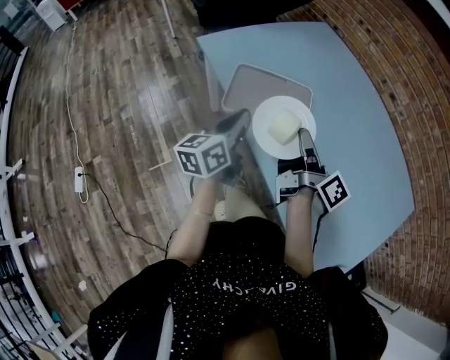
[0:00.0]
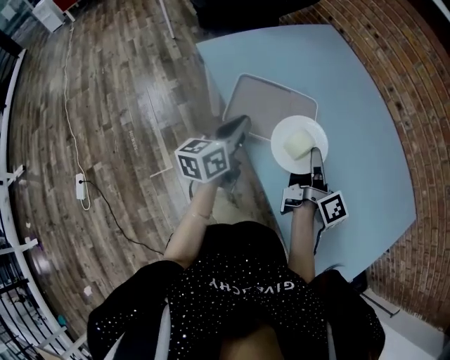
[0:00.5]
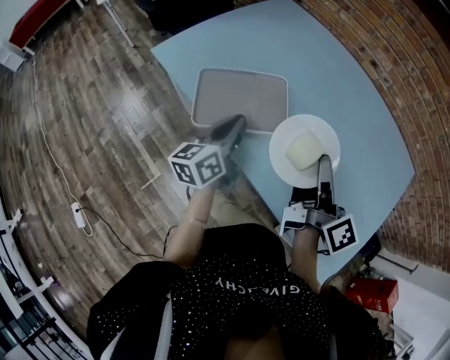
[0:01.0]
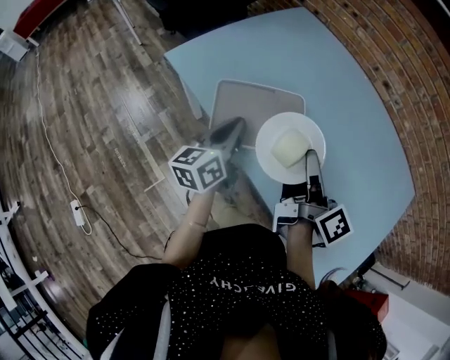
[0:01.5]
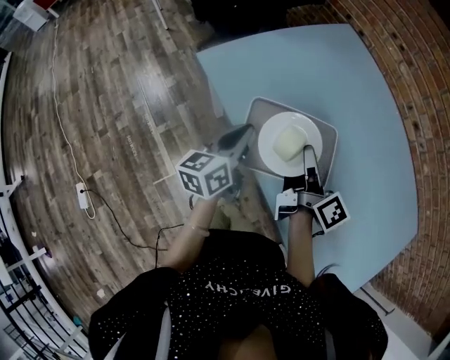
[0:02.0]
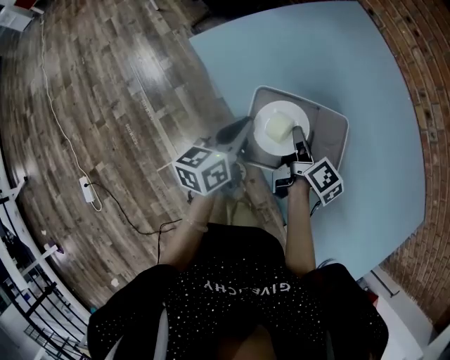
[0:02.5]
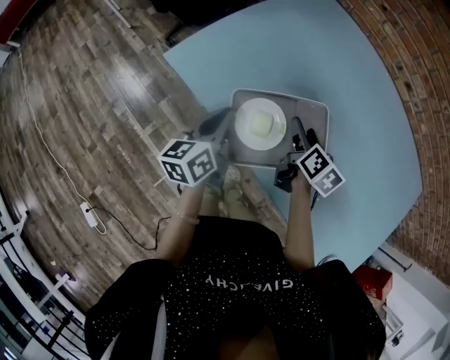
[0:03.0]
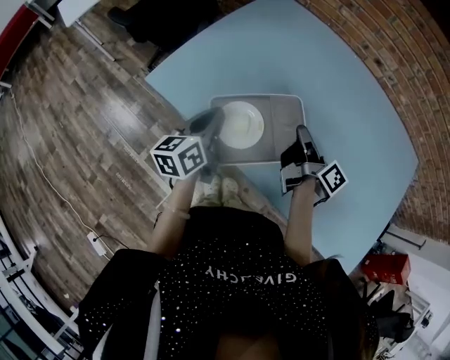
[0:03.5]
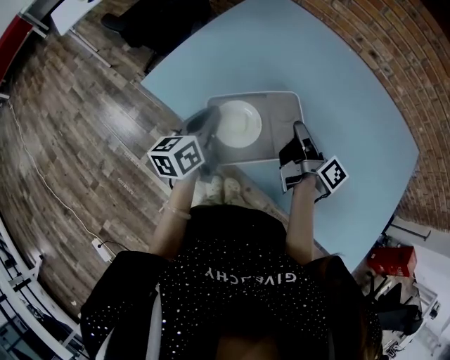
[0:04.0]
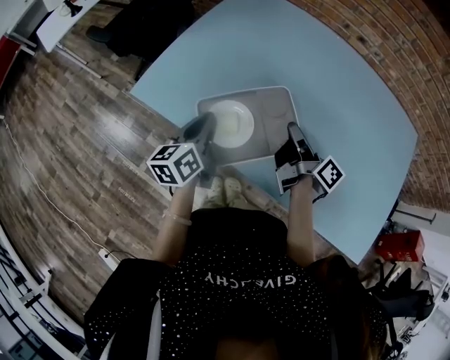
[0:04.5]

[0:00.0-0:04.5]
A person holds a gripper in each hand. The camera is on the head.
0:00.0 to 0:02.0: The left gripper moves approximately 20 cm.
0:02.0 to 0:04.5: The left gripper shifts by some 5 cm.

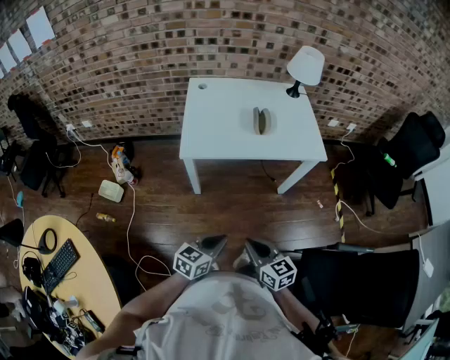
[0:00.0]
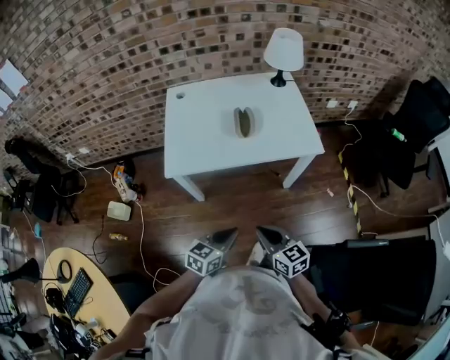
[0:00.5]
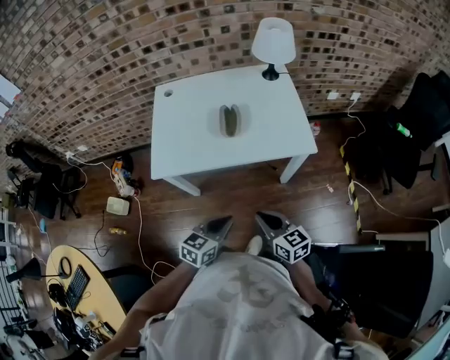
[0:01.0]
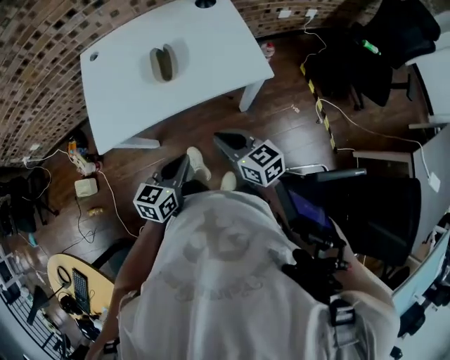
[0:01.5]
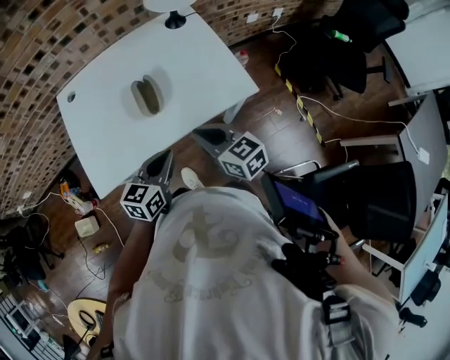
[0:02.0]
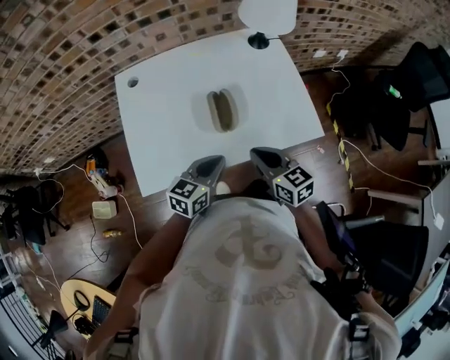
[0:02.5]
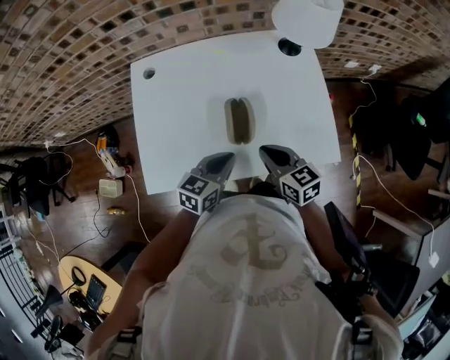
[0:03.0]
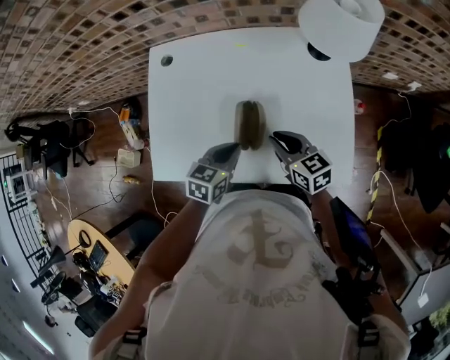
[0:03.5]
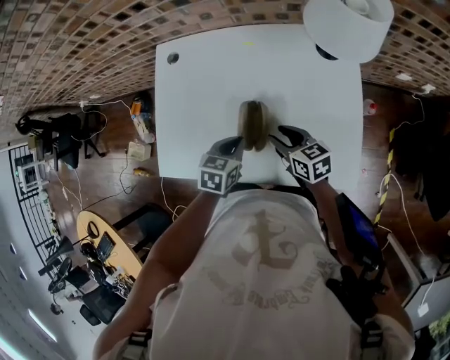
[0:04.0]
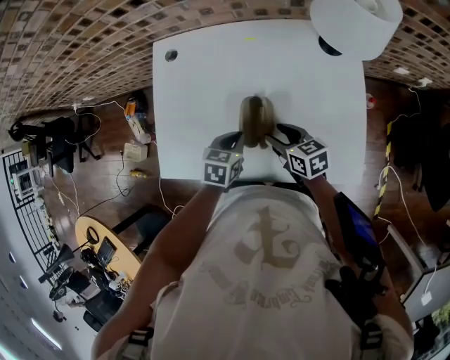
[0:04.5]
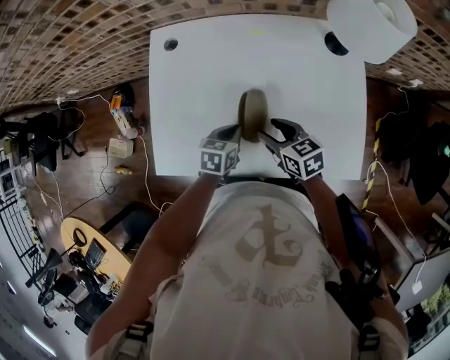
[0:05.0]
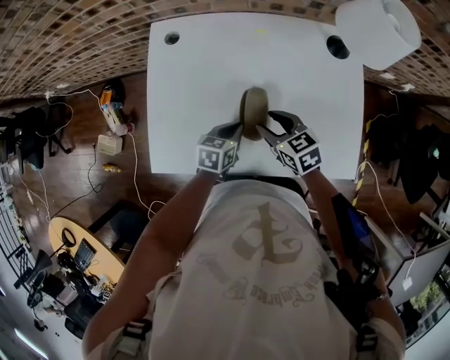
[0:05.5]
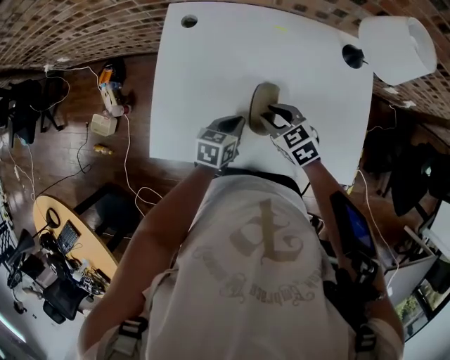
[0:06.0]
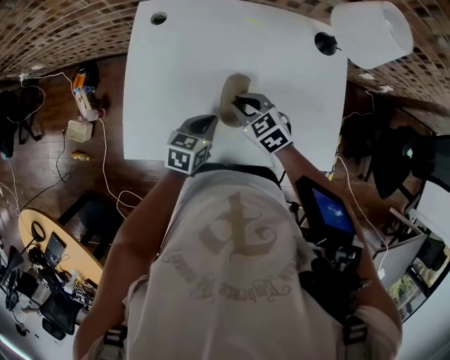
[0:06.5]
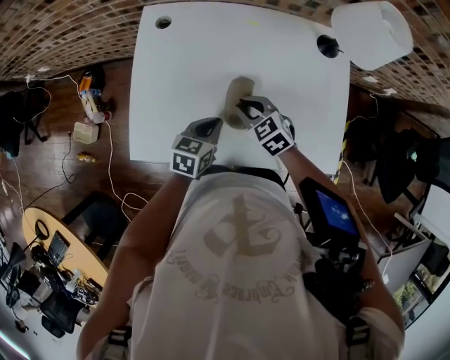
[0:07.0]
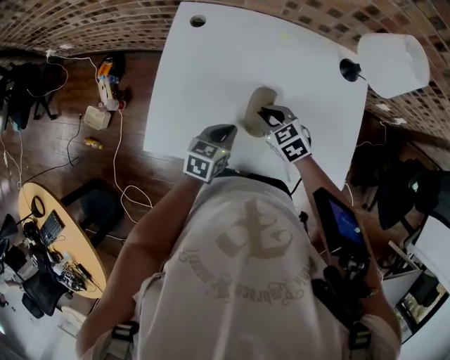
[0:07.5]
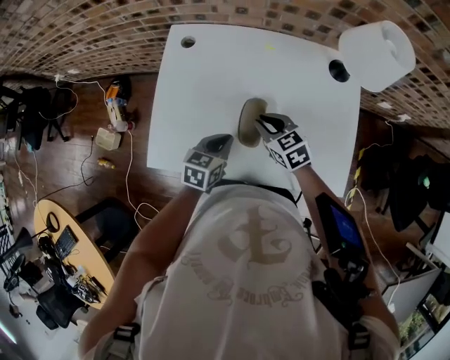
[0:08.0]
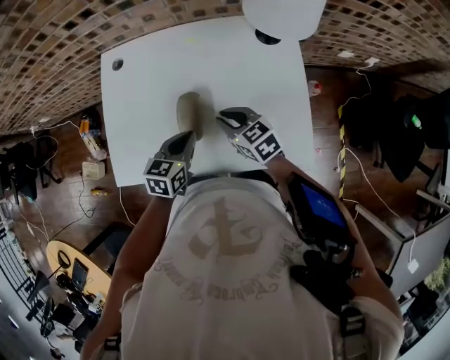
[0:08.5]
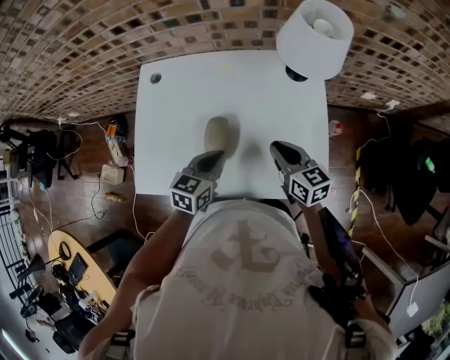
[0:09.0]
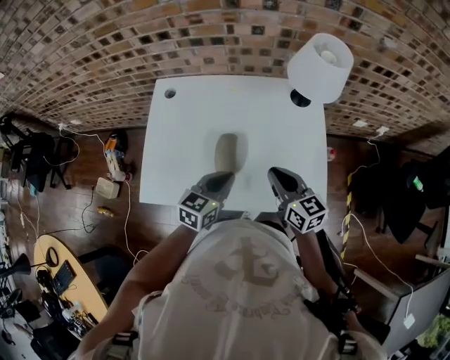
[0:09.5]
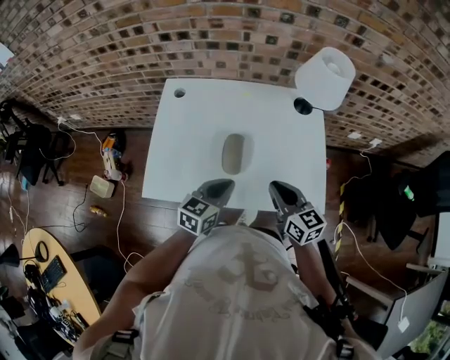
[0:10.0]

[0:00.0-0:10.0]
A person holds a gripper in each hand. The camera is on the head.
0:00.0 to 0:02.0: Both grippers move forward, approximately 40 cm.
0:02.0 to 0:04.0: The left gripper changes place by roughly 25 cm, and swivels roughly 40 degrees, while the right gripper shifts by roughly 25 cm, swivels approximately 30 degrees, and opens up.
0:04.0 to 0:06.0: The right gripper travels to the left by roughly 10 cm, and swivels approximately 30 degrees, while the left gripper shifts some 5 cm to the left.
0:06.0 to 0:08.0: The left gripper ends up roughly 5 cm from where it was.
0:08.0 to 0:10.0: The left gripper goes about 15 cm upward, backward and to the right. Meanwhile the right gripper heads backward, upward and to the right, covering about 20 cm, and changes its angle by approximately 30 degrees.

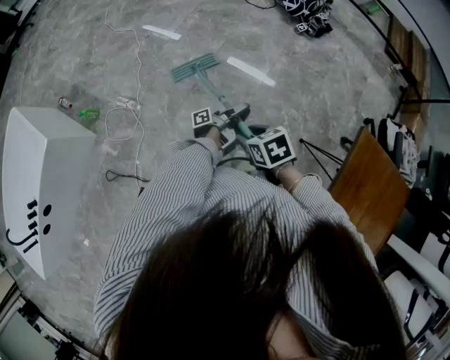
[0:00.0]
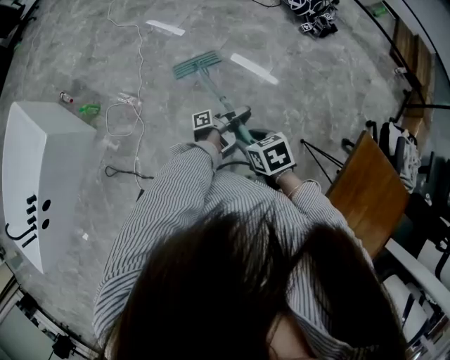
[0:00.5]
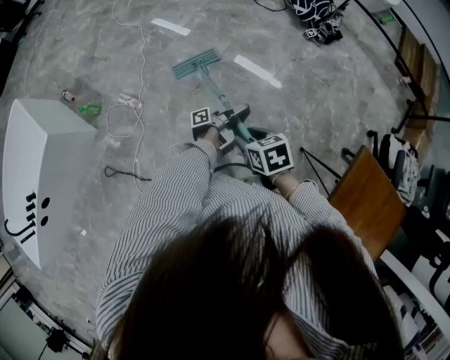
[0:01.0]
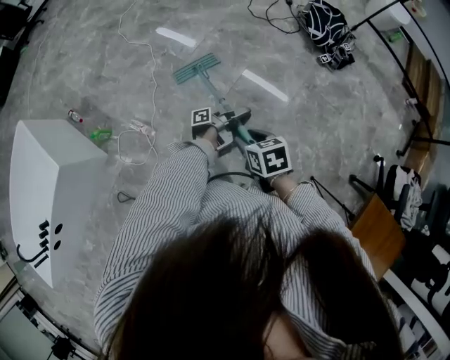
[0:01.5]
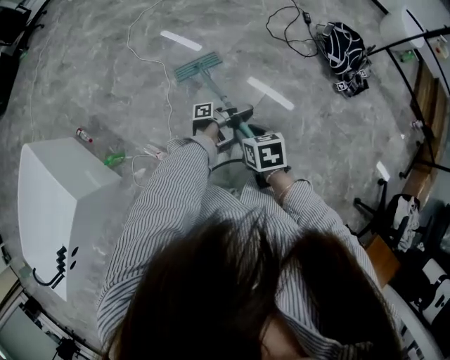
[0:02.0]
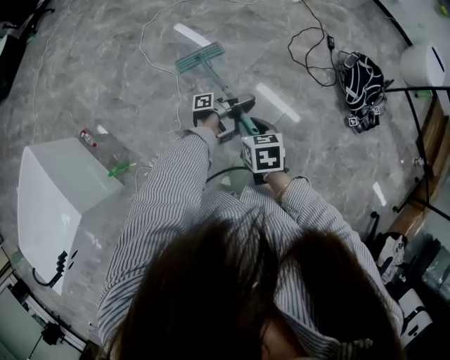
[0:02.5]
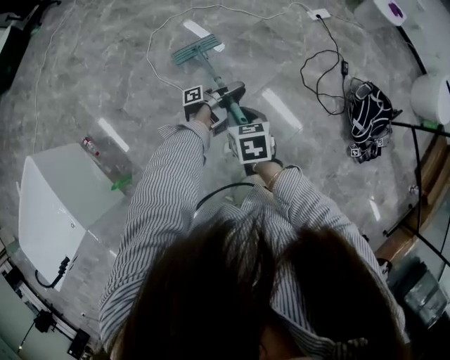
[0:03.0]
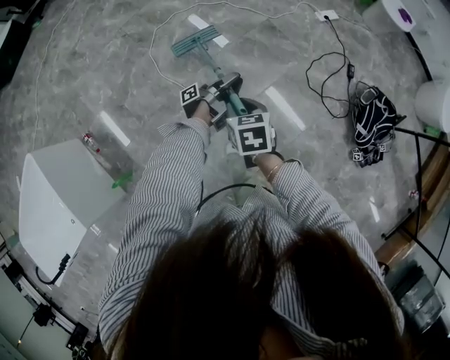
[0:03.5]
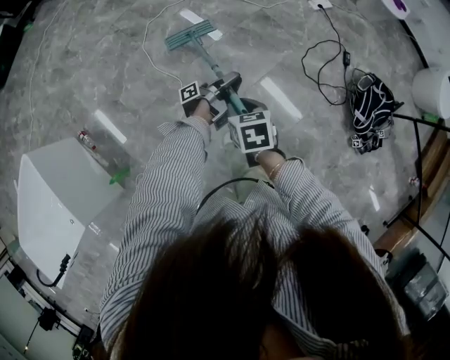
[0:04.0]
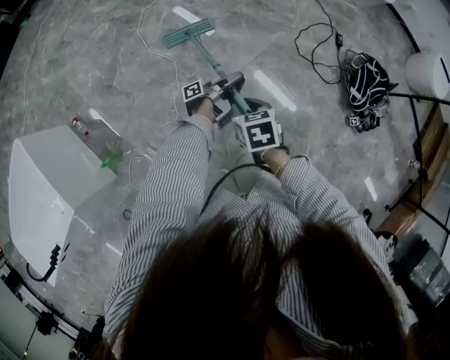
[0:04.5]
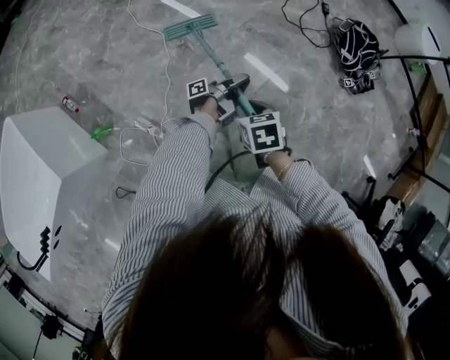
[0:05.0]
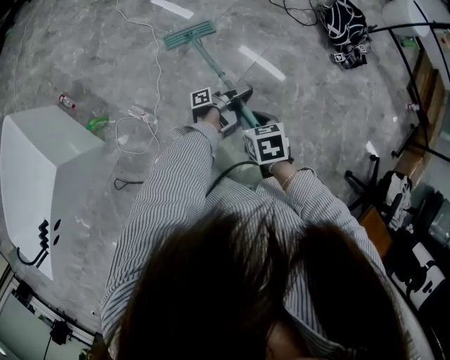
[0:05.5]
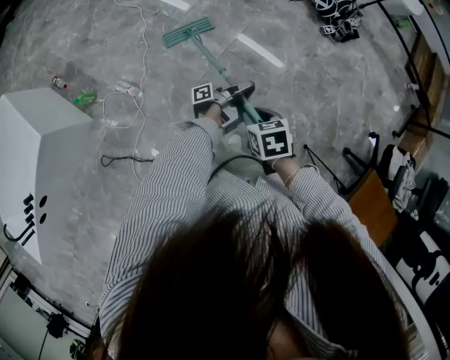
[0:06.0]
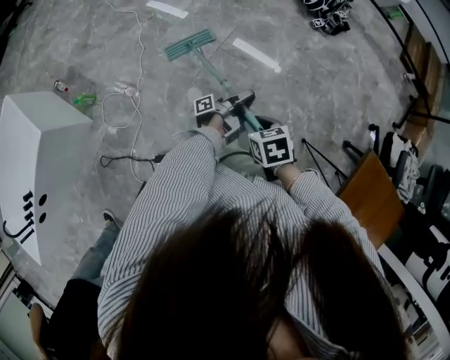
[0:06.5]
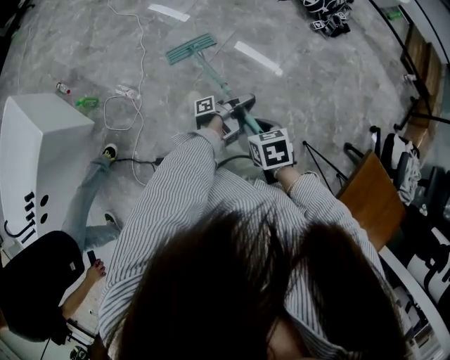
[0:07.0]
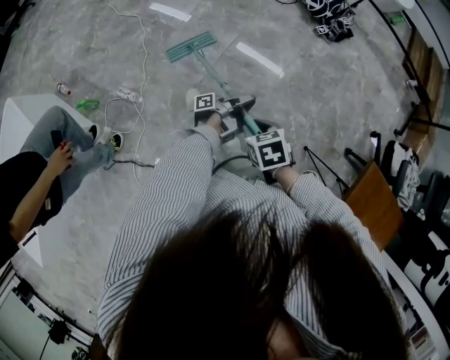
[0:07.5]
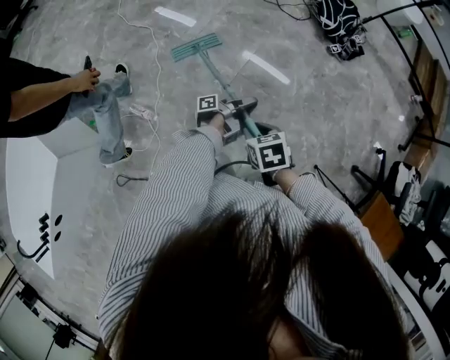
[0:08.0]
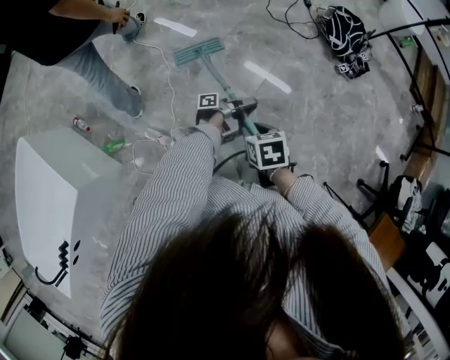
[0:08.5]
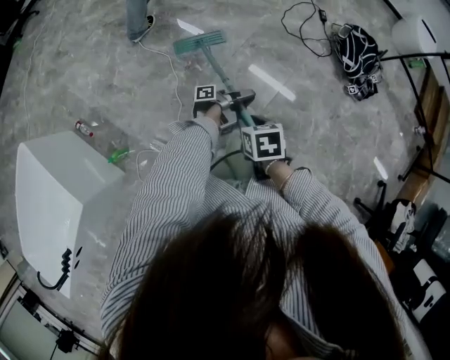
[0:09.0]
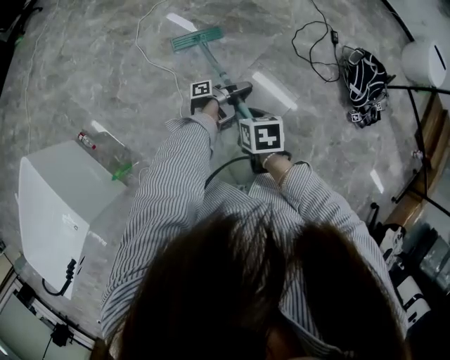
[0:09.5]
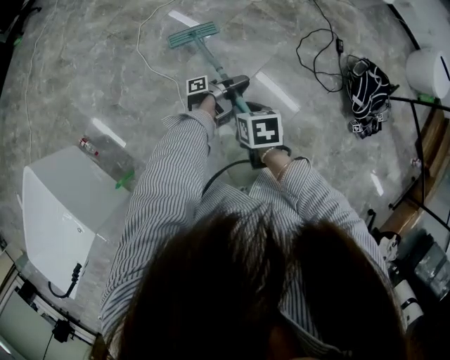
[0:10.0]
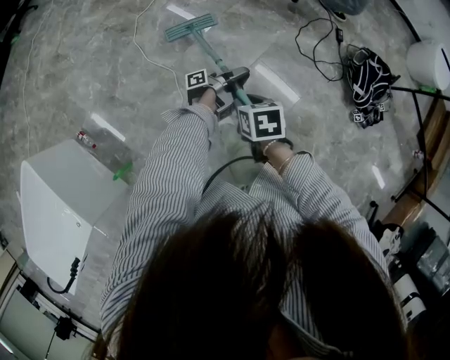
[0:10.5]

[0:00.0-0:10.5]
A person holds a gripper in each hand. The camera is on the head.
0:00.0 to 0:02.0: The right gripper ends up some 50 cm from where it was.
0:02.0 to 0:04.0: The right gripper changes place by about 40 cm.
0:04.0 to 0:06.5: The right gripper moves some 90 cm.
0:06.5 to 0:08.5: The right gripper ends up about 35 cm from where it was.
0:08.5 to 0:10.5: The right gripper moves roughly 40 cm.

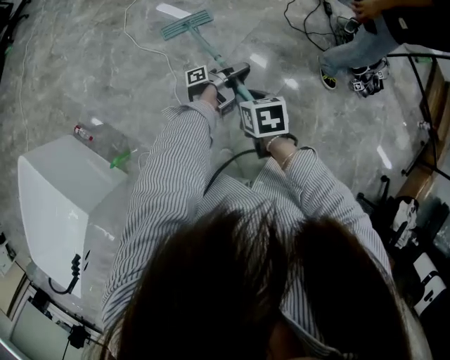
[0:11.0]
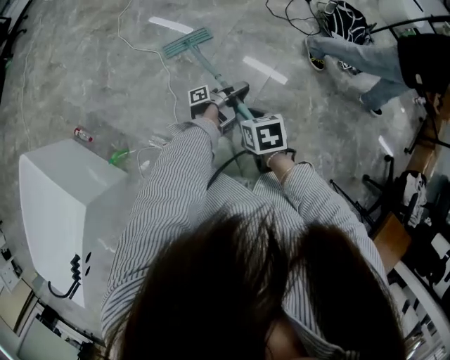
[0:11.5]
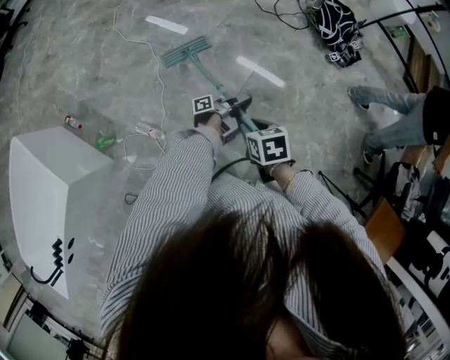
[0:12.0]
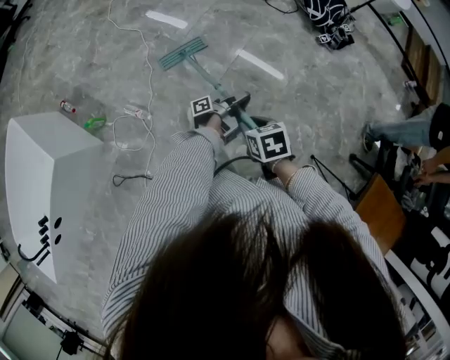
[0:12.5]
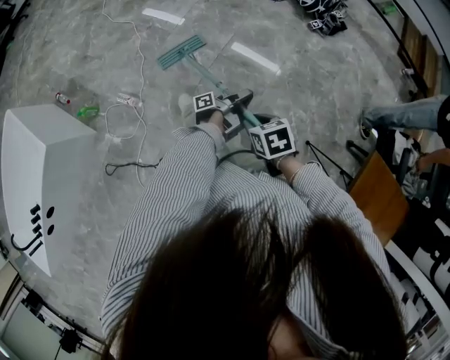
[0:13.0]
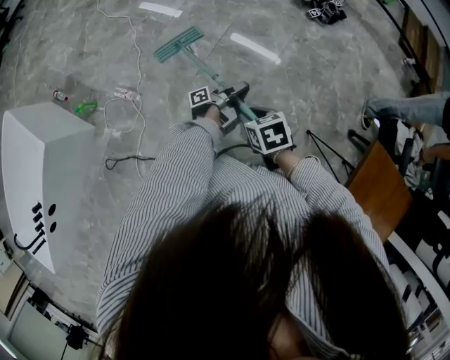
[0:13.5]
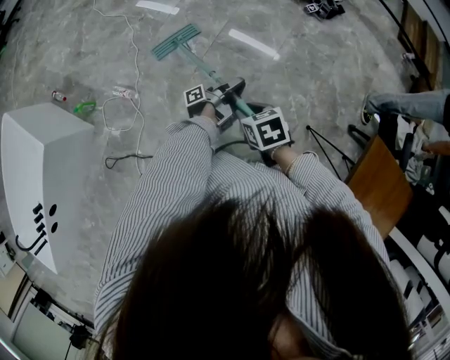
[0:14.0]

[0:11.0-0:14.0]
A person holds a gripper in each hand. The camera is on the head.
0:11.0 to 0:12.5: The right gripper shifts by approximately 50 cm.
0:12.5 to 0:14.0: The right gripper moves roughly 10 cm.
